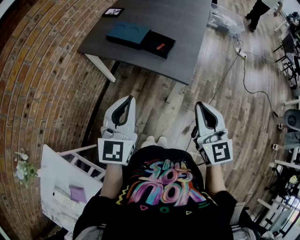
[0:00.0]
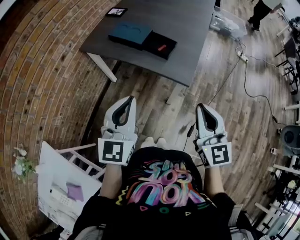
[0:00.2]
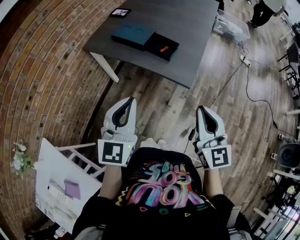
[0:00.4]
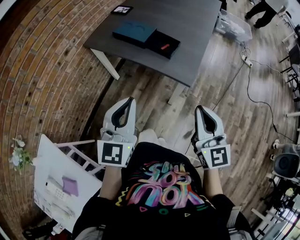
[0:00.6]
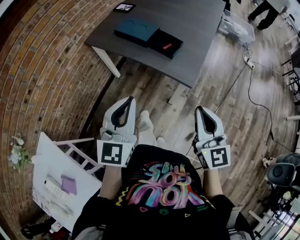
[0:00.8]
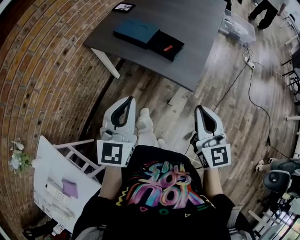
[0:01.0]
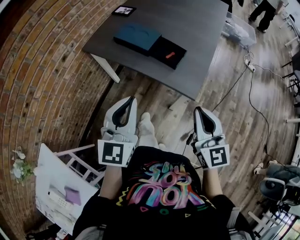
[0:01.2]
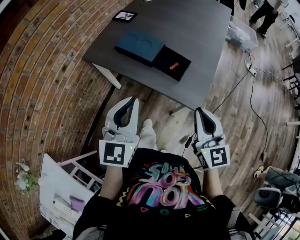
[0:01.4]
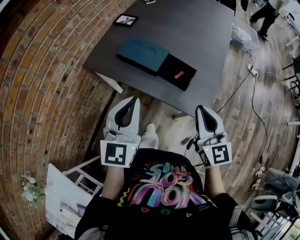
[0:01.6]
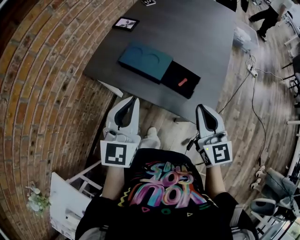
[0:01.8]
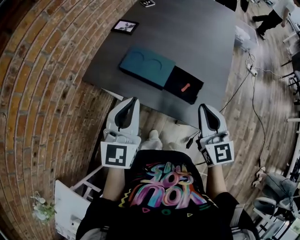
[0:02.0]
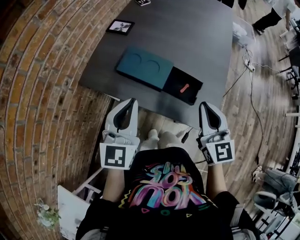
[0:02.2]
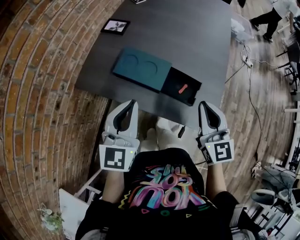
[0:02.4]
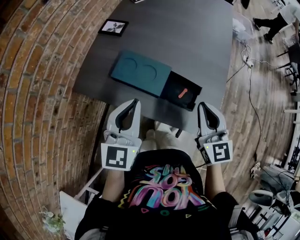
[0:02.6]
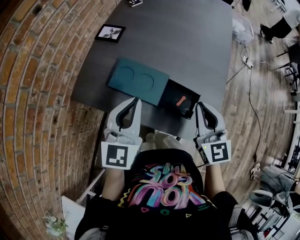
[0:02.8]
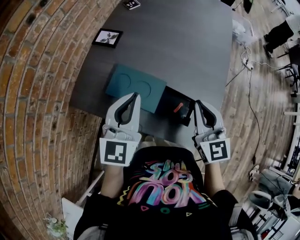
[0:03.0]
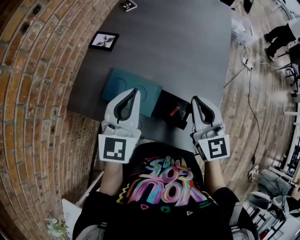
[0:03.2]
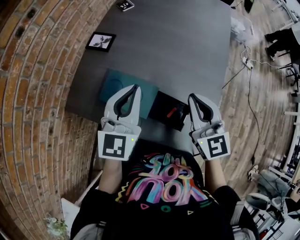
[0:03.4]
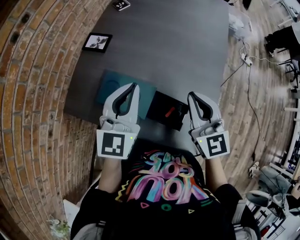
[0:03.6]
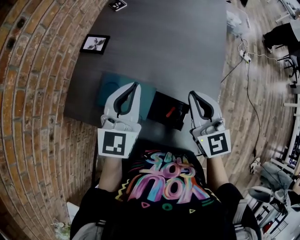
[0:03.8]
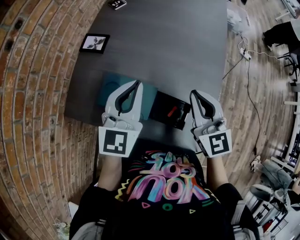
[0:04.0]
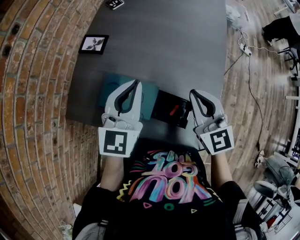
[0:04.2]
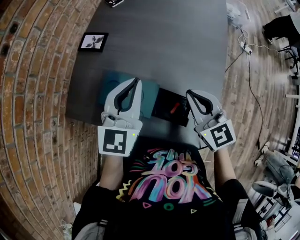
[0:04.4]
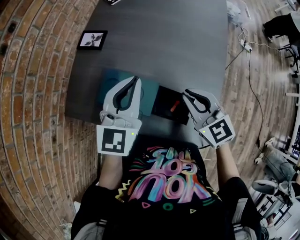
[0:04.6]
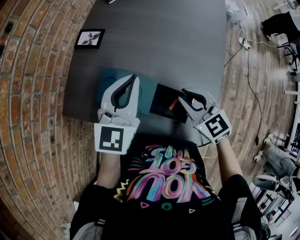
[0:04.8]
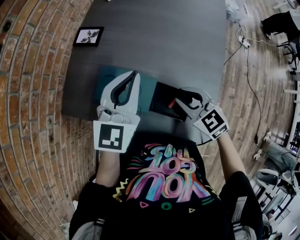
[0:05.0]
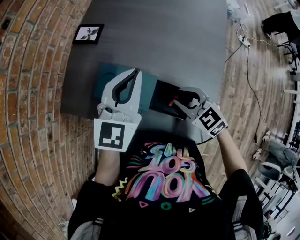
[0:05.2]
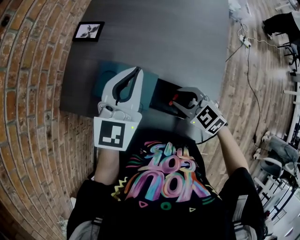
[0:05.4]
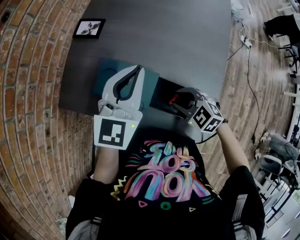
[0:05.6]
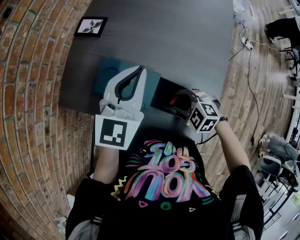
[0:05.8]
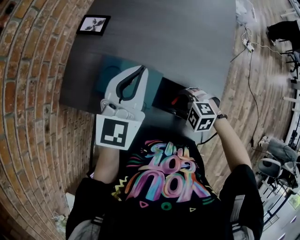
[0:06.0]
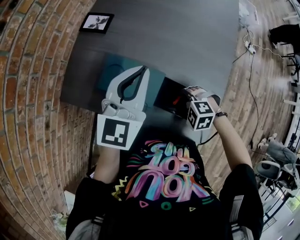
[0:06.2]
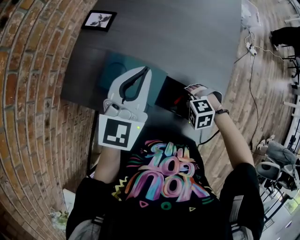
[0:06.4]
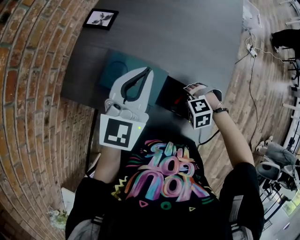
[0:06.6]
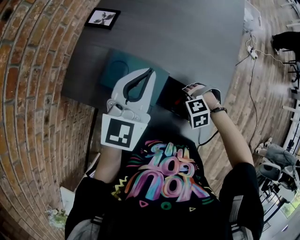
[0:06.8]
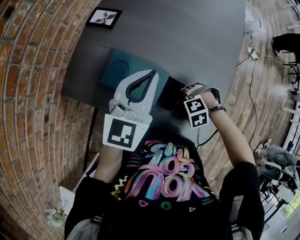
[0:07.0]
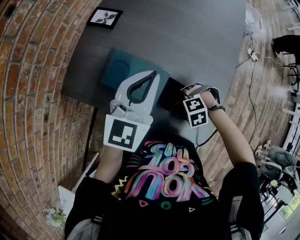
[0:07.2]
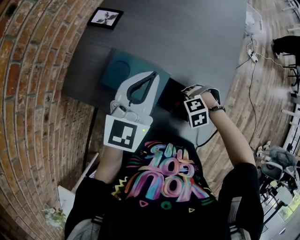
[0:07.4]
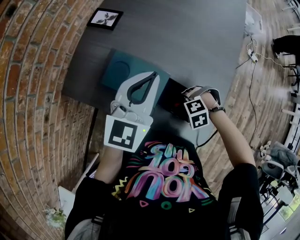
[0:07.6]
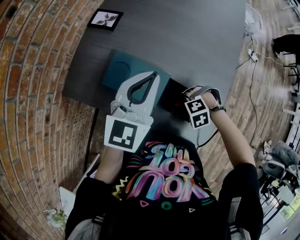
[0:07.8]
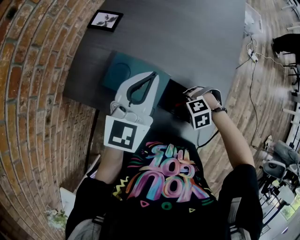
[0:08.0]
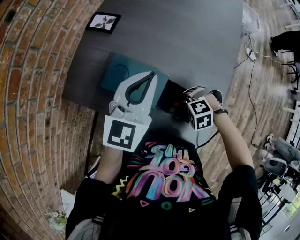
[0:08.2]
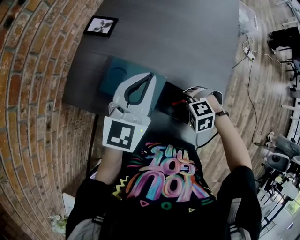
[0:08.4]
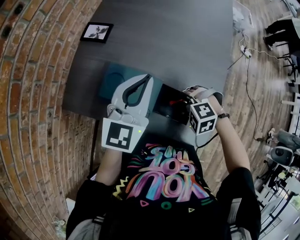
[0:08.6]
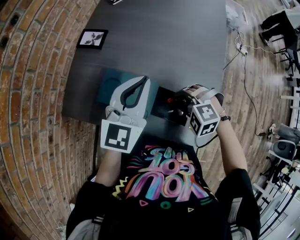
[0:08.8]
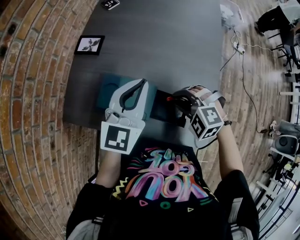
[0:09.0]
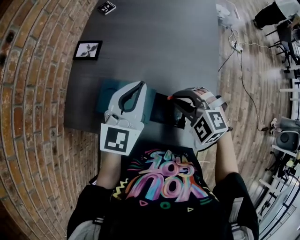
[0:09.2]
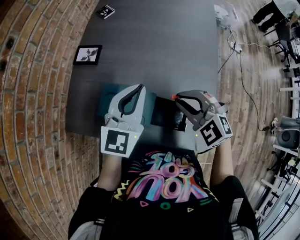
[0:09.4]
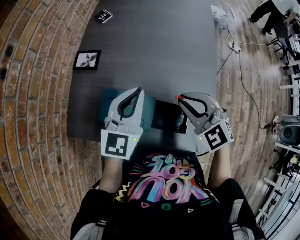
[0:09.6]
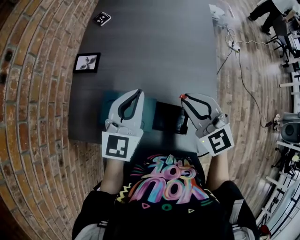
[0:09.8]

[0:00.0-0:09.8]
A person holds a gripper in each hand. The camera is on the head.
0:00.0 to 0:01.4: Both grippers move forward, roughly 15 cm.
0:01.4 to 0:02.8: Both grippers travel together forward, about 25 cm.
0:02.8 to 0:04.2: The left gripper goes some 15 cm forward and to the right. The right gripper is displaced forward by about 10 cm.
0:04.2 to 0:05.6: The right gripper goes about 15 cm downward, points its fingers roughly 30 degrees further downward, and opens up.
0:05.6 to 0:07.0: The right gripper travels downward by approximately 10 cm, and points its fingers approximately 30 degrees further downward.
0:07.0 to 0:08.4: The grippers move only a little.
0:08.4 to 0:09.8: The right gripper heads upward, covering roughly 20 cm, and angles its fingers upward, by some 50 degrees.

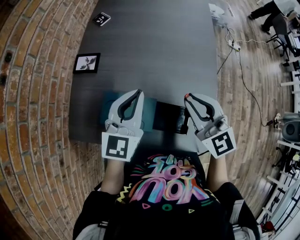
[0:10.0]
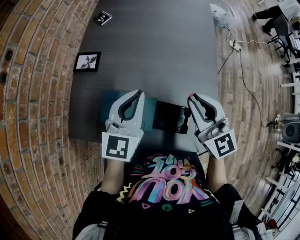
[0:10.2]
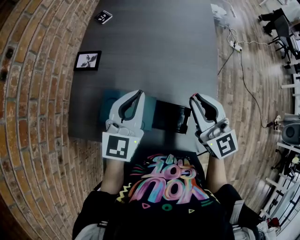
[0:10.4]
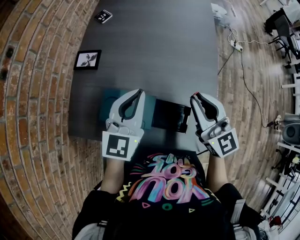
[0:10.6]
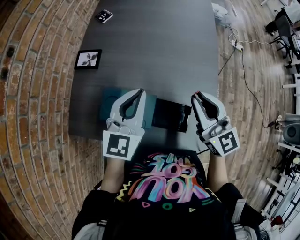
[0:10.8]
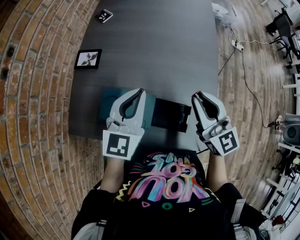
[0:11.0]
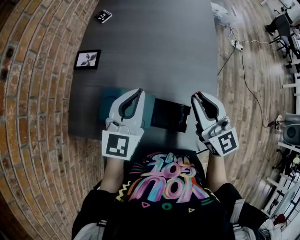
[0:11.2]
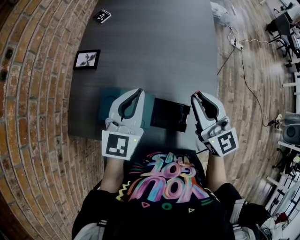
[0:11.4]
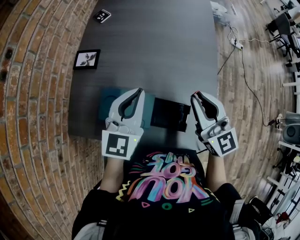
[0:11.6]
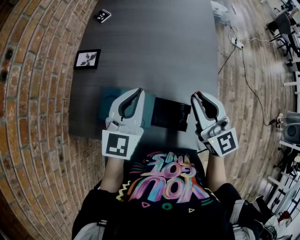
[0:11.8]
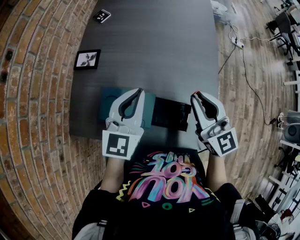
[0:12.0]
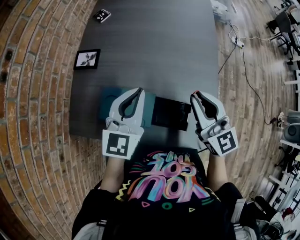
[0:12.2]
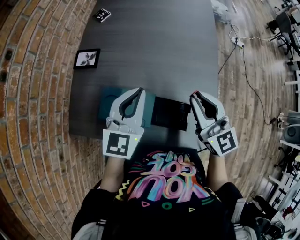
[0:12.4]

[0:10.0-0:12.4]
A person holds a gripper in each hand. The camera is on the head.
0:10.0 to 0:12.4: The grippers make only small movements.

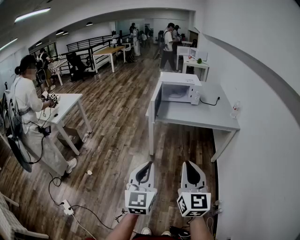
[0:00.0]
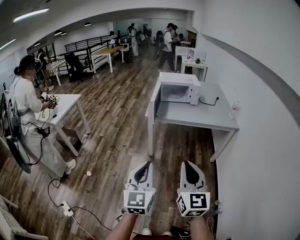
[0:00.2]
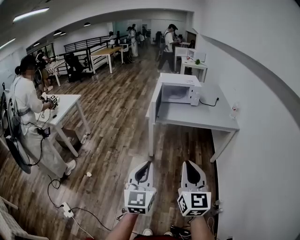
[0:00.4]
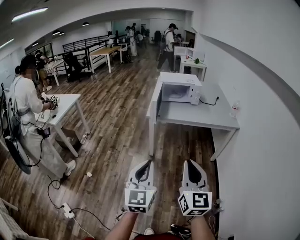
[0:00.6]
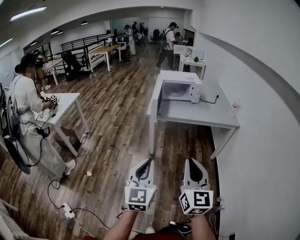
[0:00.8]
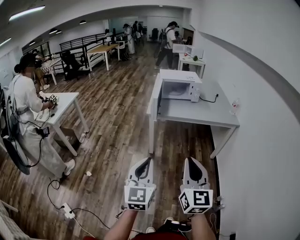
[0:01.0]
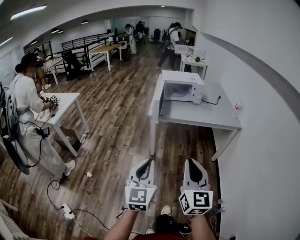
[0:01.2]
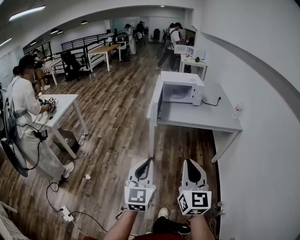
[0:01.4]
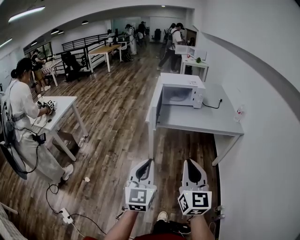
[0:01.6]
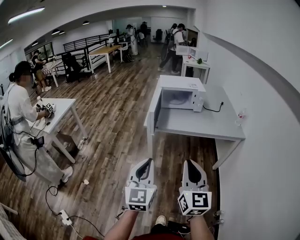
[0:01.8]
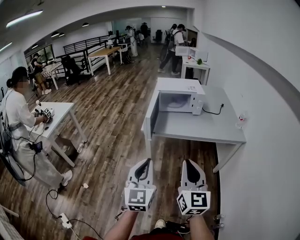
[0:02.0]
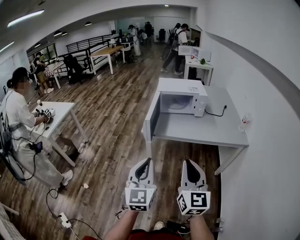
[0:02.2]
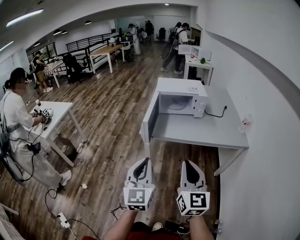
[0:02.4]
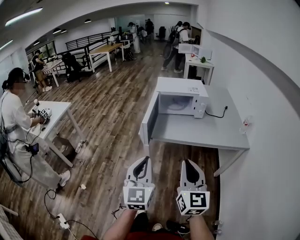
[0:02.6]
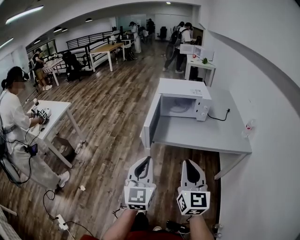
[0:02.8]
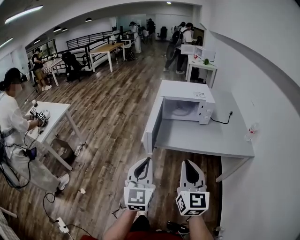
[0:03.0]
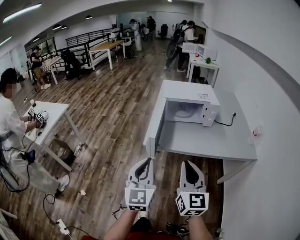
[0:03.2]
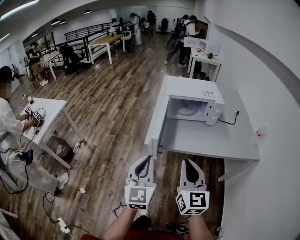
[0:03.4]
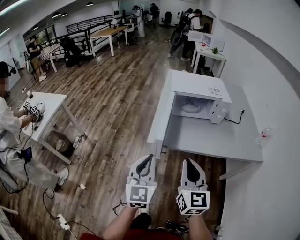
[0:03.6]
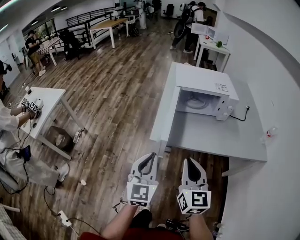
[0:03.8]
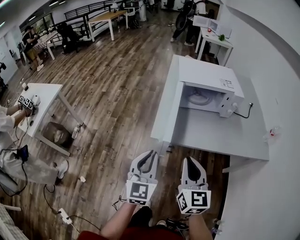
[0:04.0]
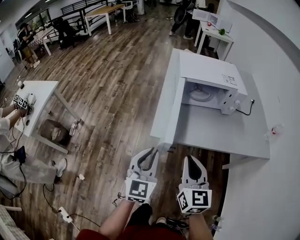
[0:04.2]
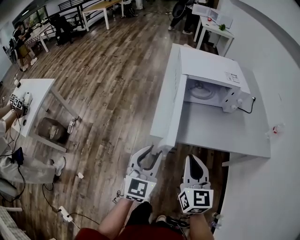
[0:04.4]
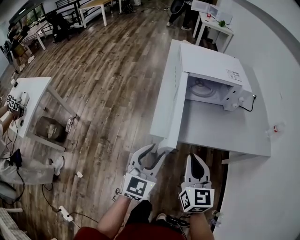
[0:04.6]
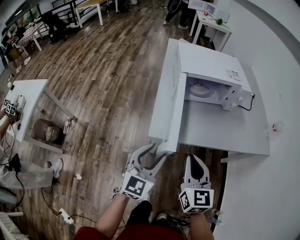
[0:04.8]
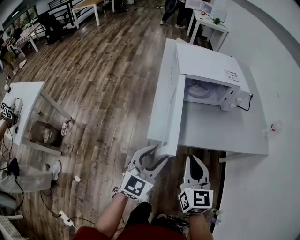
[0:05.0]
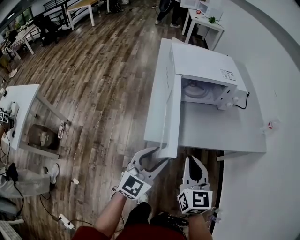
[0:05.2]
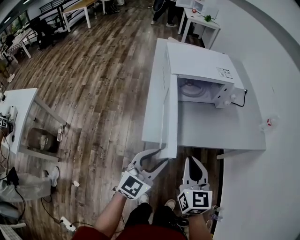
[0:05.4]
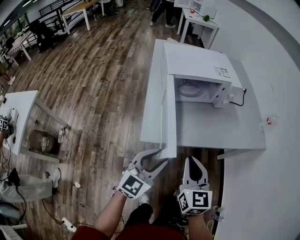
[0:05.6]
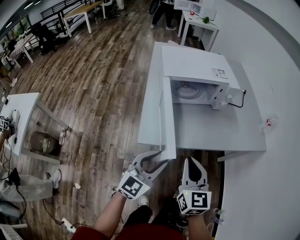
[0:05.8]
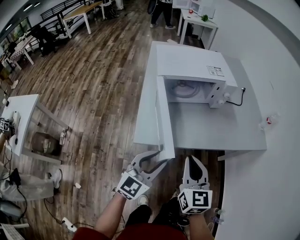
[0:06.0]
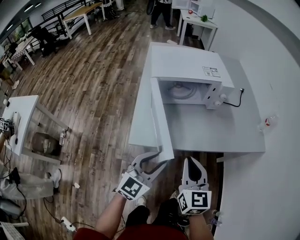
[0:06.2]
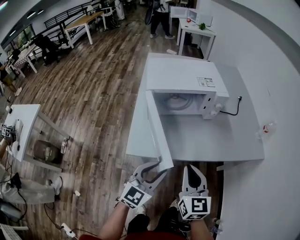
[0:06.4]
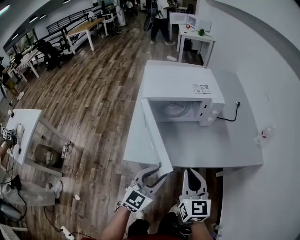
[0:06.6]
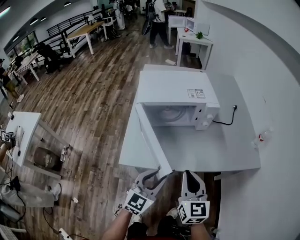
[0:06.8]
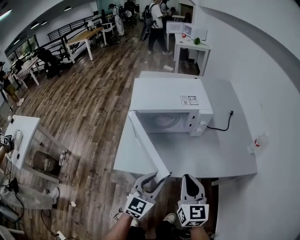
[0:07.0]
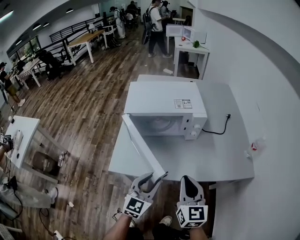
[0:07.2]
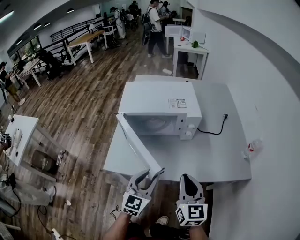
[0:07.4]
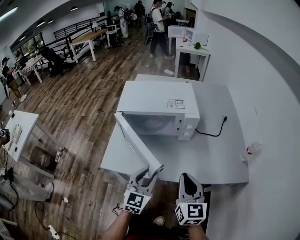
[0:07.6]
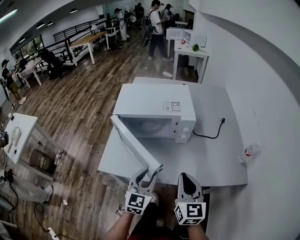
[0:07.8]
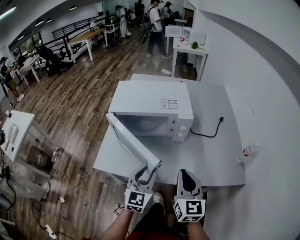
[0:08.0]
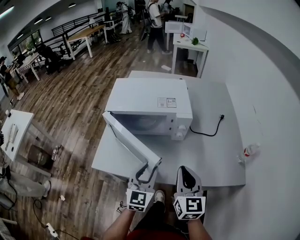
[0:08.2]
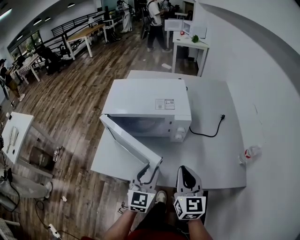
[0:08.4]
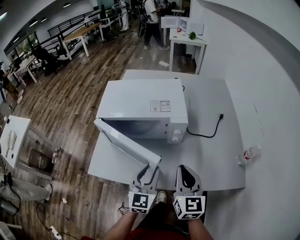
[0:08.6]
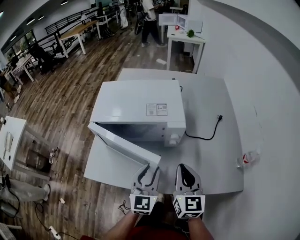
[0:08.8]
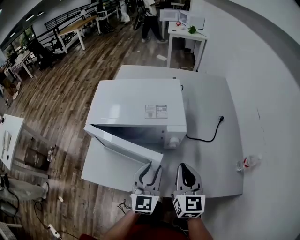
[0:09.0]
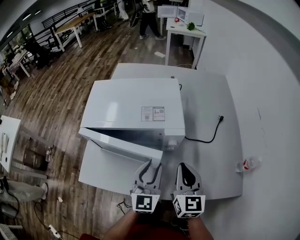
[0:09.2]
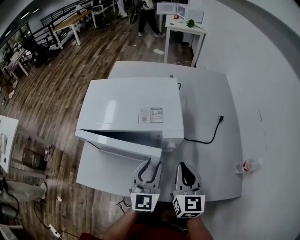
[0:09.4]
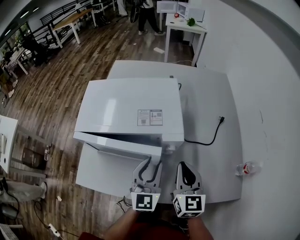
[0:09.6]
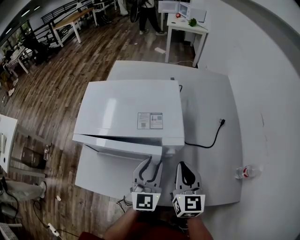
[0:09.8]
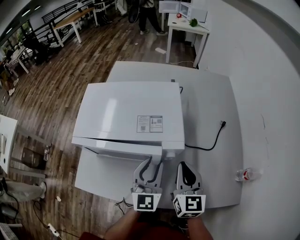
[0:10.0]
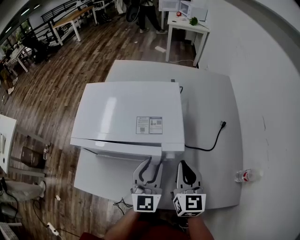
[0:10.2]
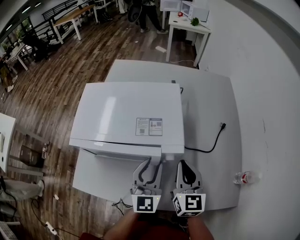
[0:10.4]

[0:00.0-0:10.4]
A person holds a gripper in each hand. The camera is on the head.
0:00.0 to 0:01.4: Both grippers move forward and to the left, some 10 cm.
0:01.4 to 0:03.0: Both grippers travel together forward, roughly 30 cm.
0:03.0 to 0:04.4: The left gripper heads forward and downward, covering some 25 cm, and opens its fingers; the right gripper heads forward, downward and to the left, covering roughly 25 cm.
0:04.4 to 0:06.0: The left gripper heads to the right, covering some 10 cm, and swivels roughly 30 degrees. The right gripper heads to the right and forward, covering approximately 10 cm.
0:06.0 to 0:07.4: The grippers both shift to the right and forward by about 20 cm.
0:07.4 to 0:09.0: The two grippers go about 20 cm forward and to the right.
0:09.0 to 0:10.4: Both grippers move forward, roughly 10 cm.

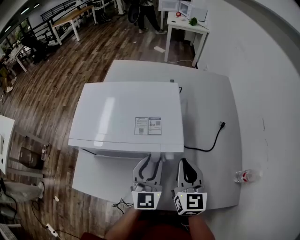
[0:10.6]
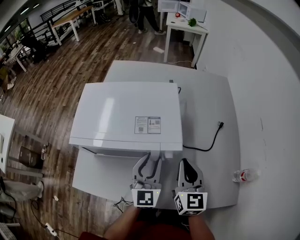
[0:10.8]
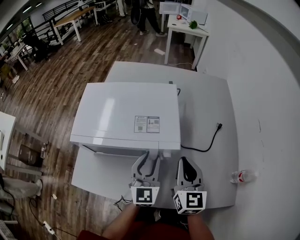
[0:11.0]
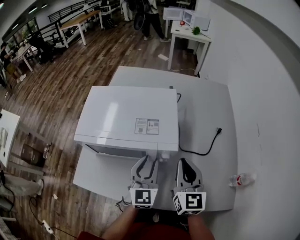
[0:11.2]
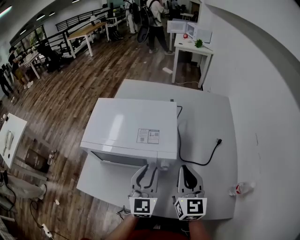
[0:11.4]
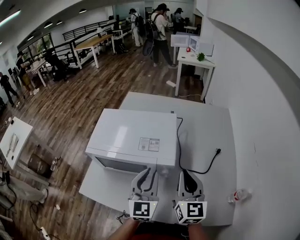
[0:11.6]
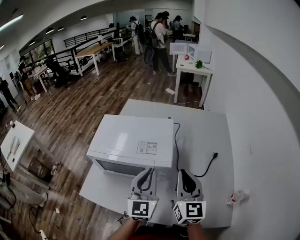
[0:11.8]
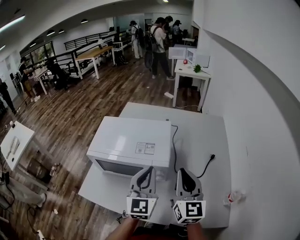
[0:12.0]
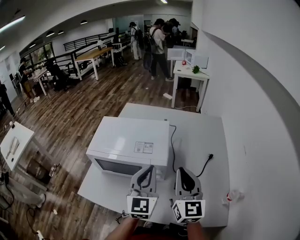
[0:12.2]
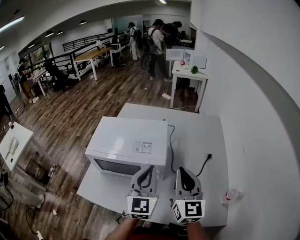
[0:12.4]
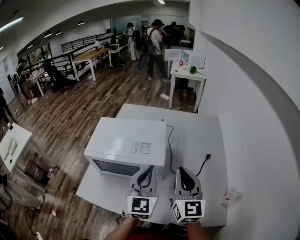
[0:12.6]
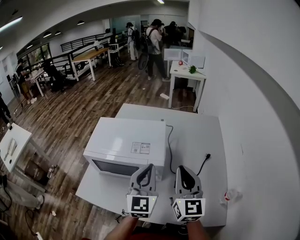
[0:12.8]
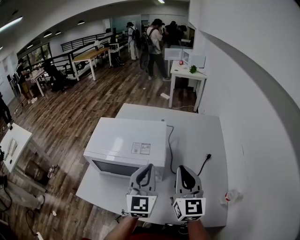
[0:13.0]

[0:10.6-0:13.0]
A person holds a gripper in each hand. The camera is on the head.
0:10.6 to 0:11.8: The grippers both shift upward by about 10 cm. The left gripper closes its fingers.
0:11.8 to 0:13.0: The grippers stay close to where they were, moving slightly.
